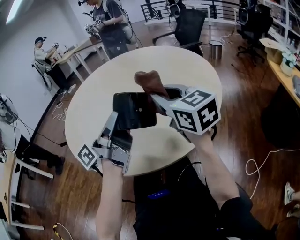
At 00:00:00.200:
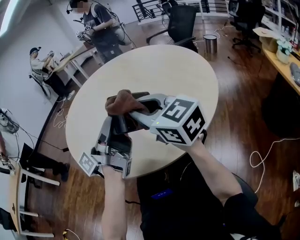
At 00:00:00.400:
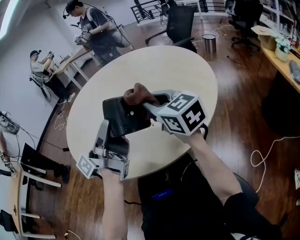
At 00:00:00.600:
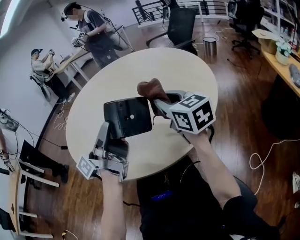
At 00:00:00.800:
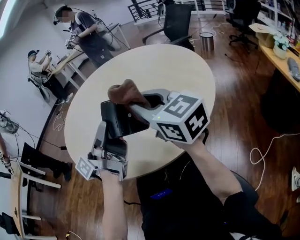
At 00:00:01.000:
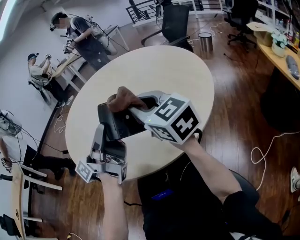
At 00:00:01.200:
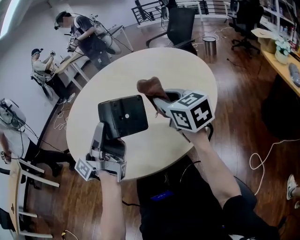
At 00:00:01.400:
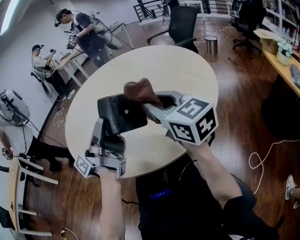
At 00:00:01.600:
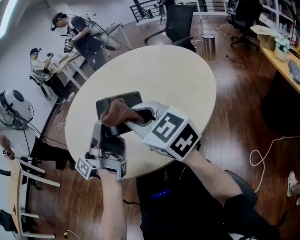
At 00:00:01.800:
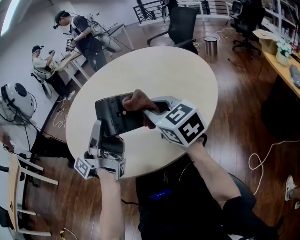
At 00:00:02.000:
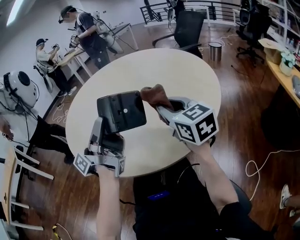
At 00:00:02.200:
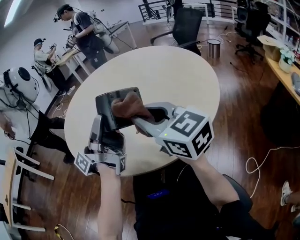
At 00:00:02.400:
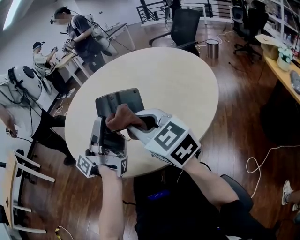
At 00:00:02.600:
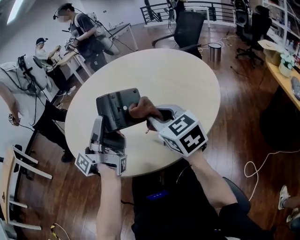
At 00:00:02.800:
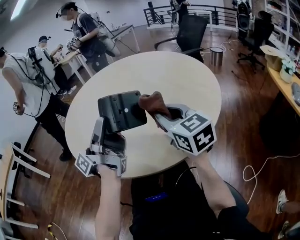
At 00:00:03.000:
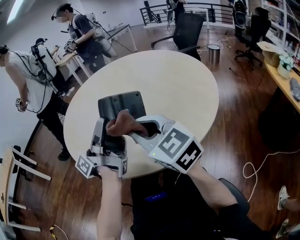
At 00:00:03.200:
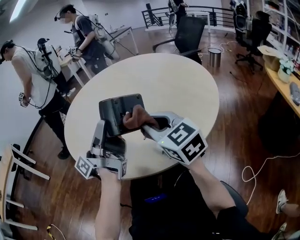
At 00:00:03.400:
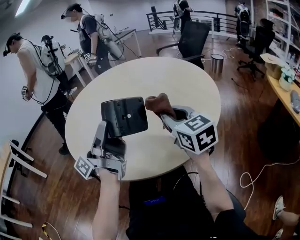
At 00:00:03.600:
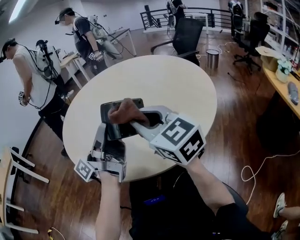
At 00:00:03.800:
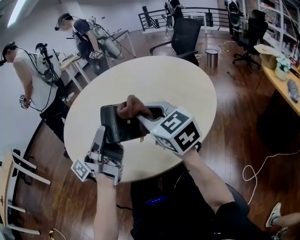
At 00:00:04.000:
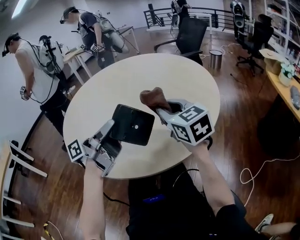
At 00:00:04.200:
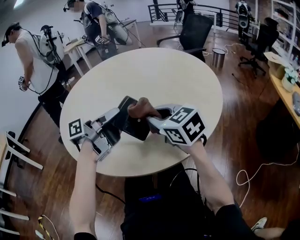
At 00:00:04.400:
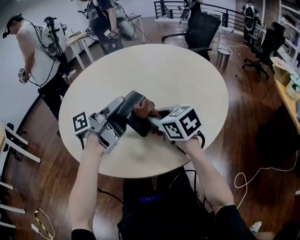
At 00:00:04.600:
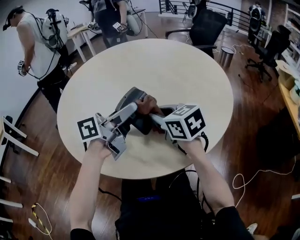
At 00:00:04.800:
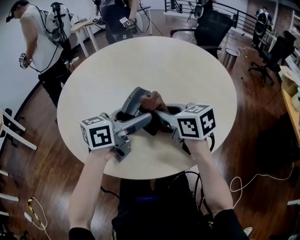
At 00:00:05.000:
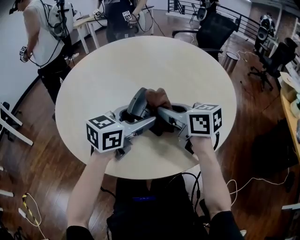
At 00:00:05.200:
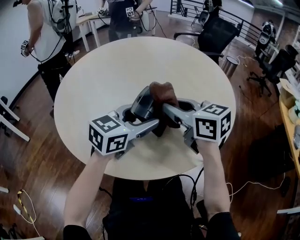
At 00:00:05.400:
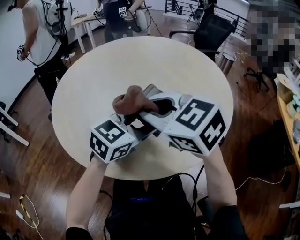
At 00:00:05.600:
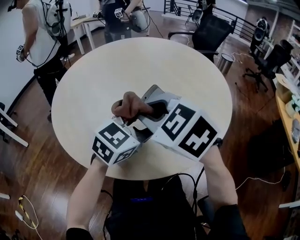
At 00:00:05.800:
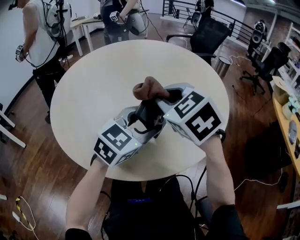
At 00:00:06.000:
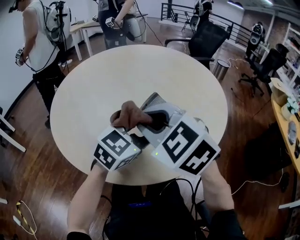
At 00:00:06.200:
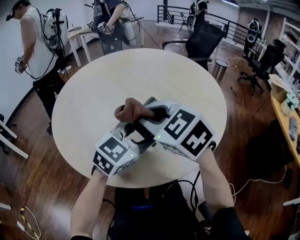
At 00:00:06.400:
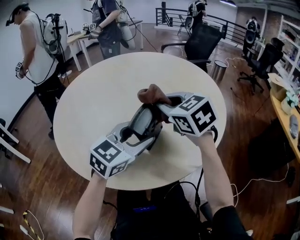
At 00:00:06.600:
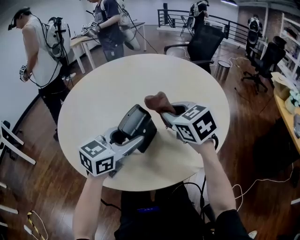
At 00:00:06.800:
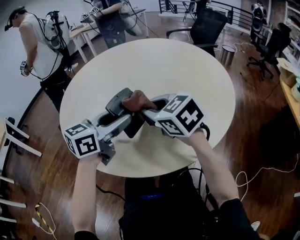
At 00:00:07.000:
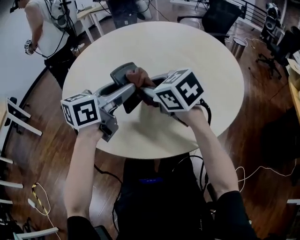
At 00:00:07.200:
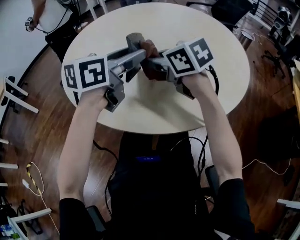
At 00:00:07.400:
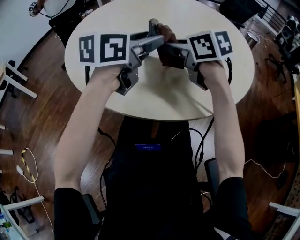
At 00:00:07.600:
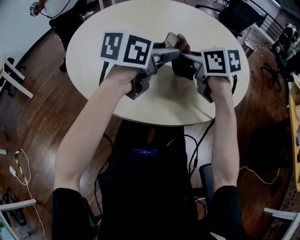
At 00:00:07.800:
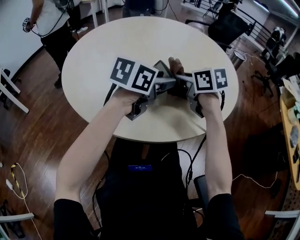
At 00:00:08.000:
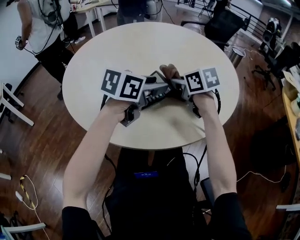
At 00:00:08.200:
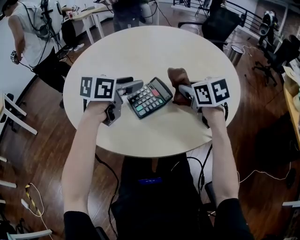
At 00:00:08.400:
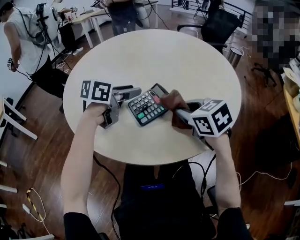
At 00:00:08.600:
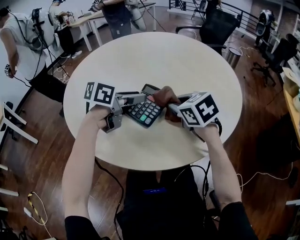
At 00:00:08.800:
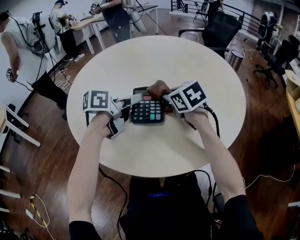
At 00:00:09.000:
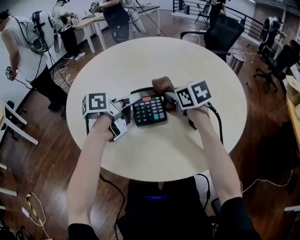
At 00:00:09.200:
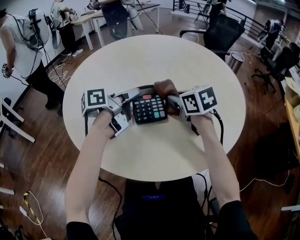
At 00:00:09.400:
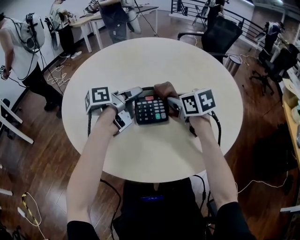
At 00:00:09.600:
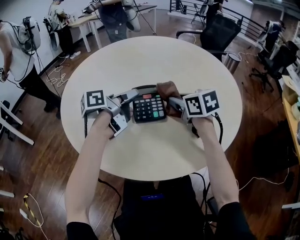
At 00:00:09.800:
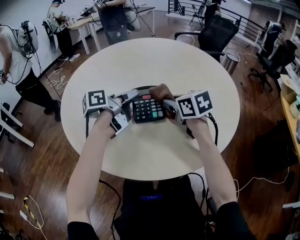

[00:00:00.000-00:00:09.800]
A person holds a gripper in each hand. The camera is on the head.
00:00:00.000 to 00:00:01.400: The right gripper goes left and right, roughly 10 cm each way, reversing 3 times.
00:00:01.400 to 00:00:02.800: The right gripper swings left and right, some 10 cm each way, with 3 reversals.
00:00:02.800 to 00:00:04.200: The left gripper is displaced downward and forward by about 10 cm, and angles its fingers downward, by approximately 30 degrees, while the right gripper swings left and right, roughly 10 cm each way, with 4 reversals.
00:00:04.200 to 00:00:05.600: The left gripper shifts some 5 cm to the right, rolls clockwise, seen from behind, by roughly 80 degrees, and opens its fingers. The right gripper shifts roughly 10 cm to the left, and changes its angle by roughly 30 degrees.
00:00:05.600 to 00:00:07.000: The right gripper swings left and right, about 10 cm each way, with 3 reversals, and swivels approximately 20 degrees. The left gripper travels to the left by some 10 cm, and rotates about 30 degrees.
00:00:07.000 to 00:00:08.400: The left gripper goes some 10 cm downward and forward, and changes its angle by about 20 degrees. Meanwhile the right gripper heads to the right, covering approximately 10 cm.
00:00:08.400 to 00:00:09.800: The right gripper travels forward by roughly 10 cm; the left gripper rotates roughly 40 degrees.

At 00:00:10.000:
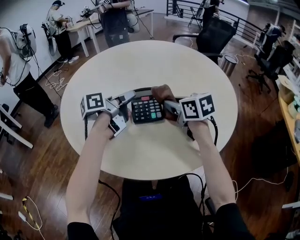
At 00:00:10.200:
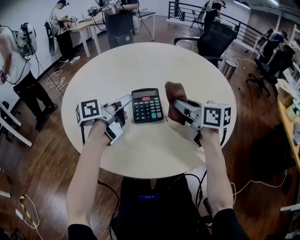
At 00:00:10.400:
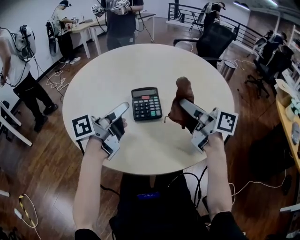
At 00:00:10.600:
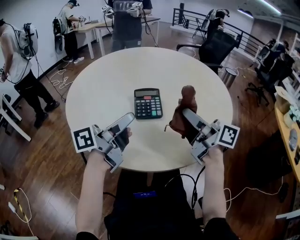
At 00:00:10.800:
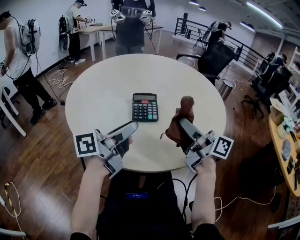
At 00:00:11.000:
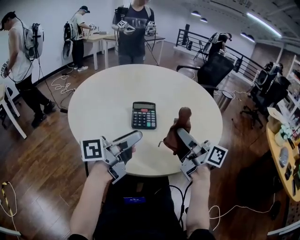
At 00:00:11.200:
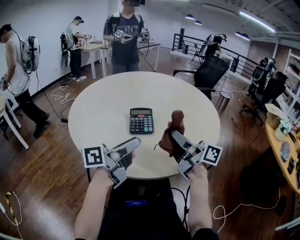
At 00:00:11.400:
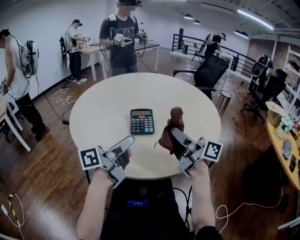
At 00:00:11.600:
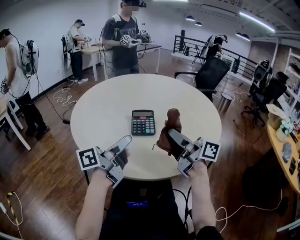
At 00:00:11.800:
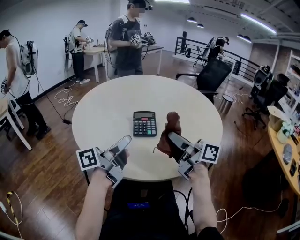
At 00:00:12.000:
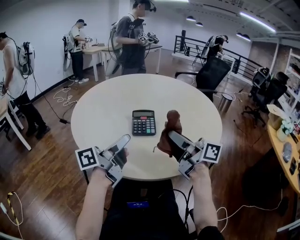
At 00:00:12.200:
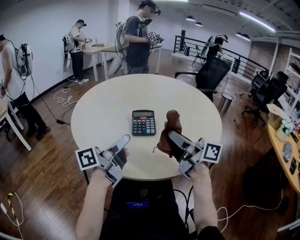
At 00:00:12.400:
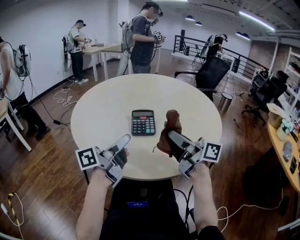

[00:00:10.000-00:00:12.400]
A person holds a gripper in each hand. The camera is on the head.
00:00:10.000 to 00:00:11.200: The left gripper moves backward, roughly 20 cm, and rotates roughly 20 degrees. Meanwhile the right gripper travels backward and upward by some 20 cm, and tips its fingers upward by about 50 degrees.
00:00:11.200 to 00:00:12.400: The grippers move only a little.

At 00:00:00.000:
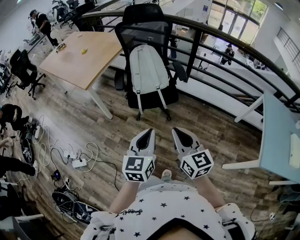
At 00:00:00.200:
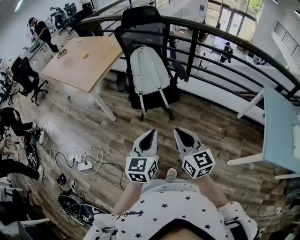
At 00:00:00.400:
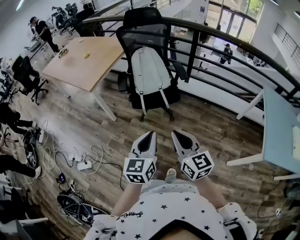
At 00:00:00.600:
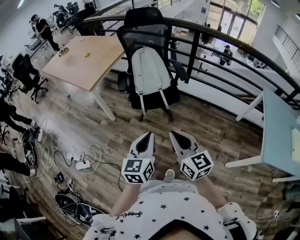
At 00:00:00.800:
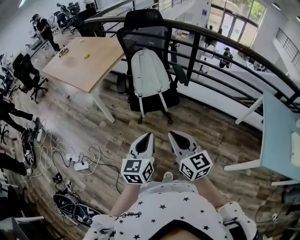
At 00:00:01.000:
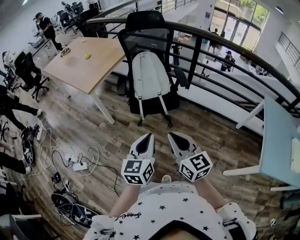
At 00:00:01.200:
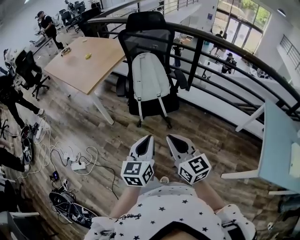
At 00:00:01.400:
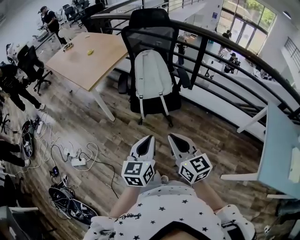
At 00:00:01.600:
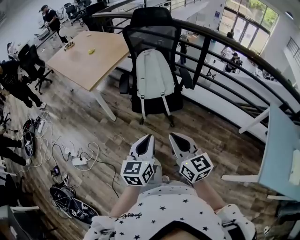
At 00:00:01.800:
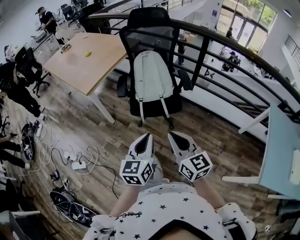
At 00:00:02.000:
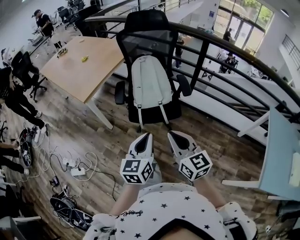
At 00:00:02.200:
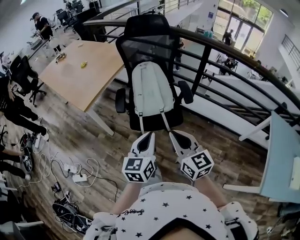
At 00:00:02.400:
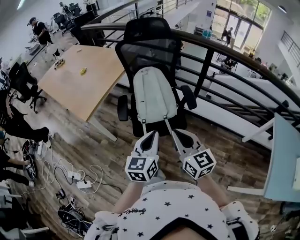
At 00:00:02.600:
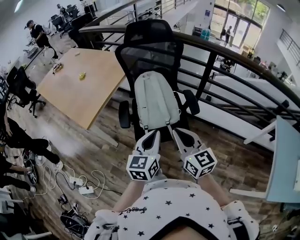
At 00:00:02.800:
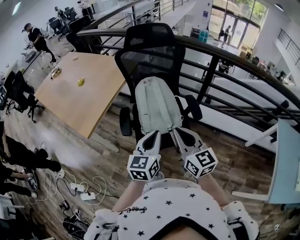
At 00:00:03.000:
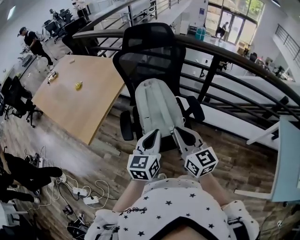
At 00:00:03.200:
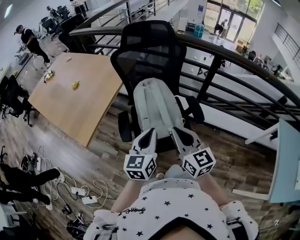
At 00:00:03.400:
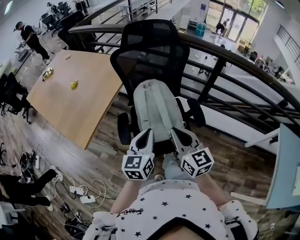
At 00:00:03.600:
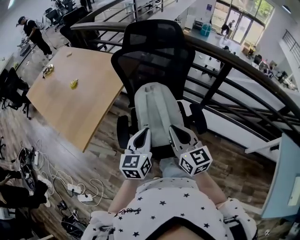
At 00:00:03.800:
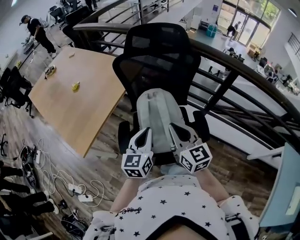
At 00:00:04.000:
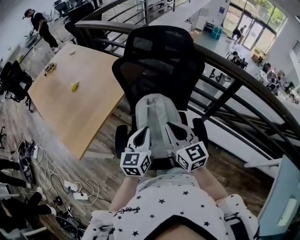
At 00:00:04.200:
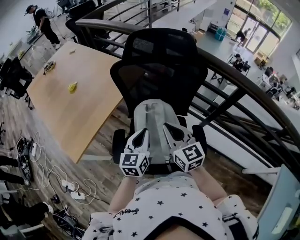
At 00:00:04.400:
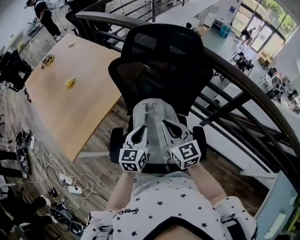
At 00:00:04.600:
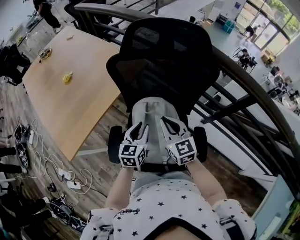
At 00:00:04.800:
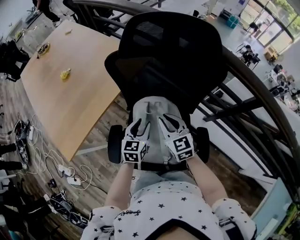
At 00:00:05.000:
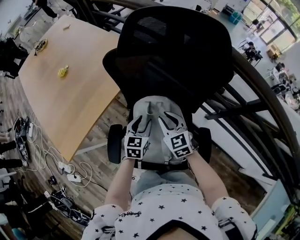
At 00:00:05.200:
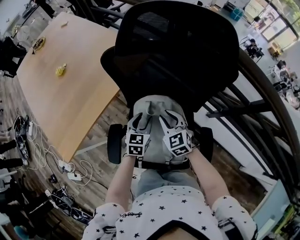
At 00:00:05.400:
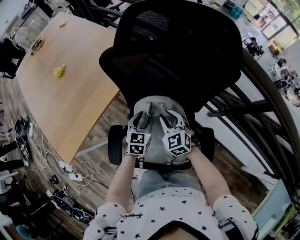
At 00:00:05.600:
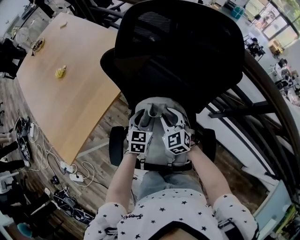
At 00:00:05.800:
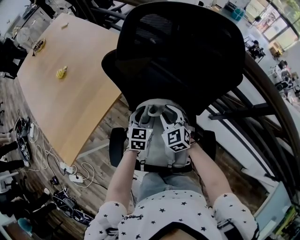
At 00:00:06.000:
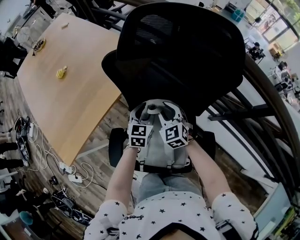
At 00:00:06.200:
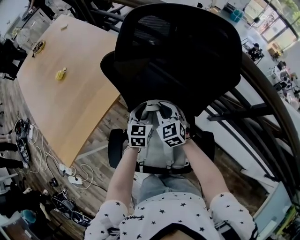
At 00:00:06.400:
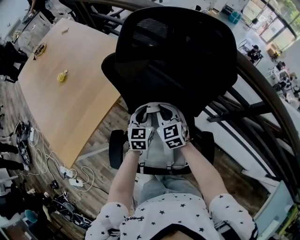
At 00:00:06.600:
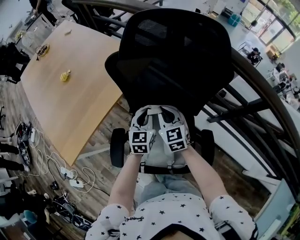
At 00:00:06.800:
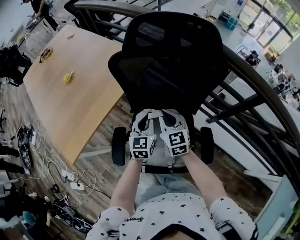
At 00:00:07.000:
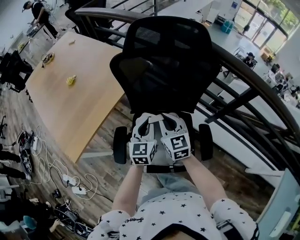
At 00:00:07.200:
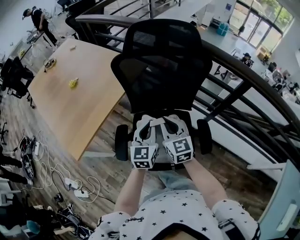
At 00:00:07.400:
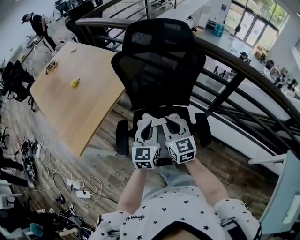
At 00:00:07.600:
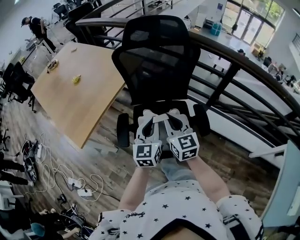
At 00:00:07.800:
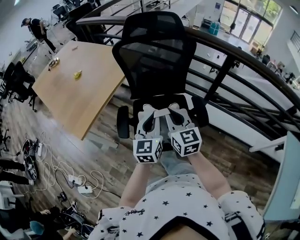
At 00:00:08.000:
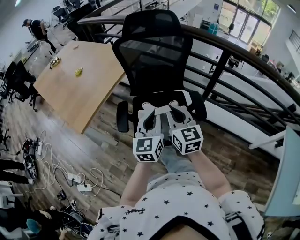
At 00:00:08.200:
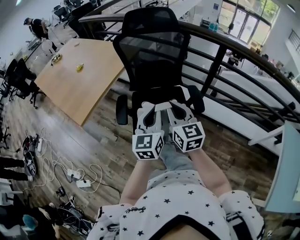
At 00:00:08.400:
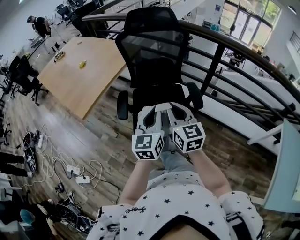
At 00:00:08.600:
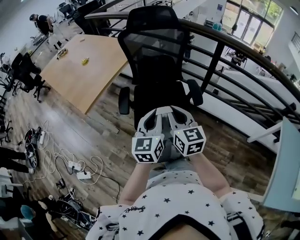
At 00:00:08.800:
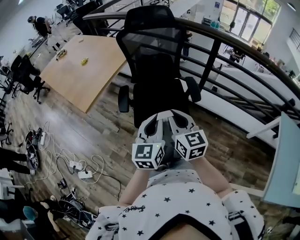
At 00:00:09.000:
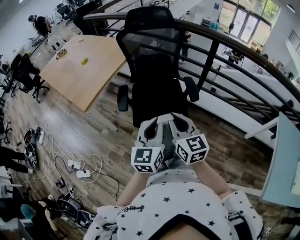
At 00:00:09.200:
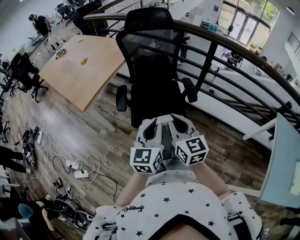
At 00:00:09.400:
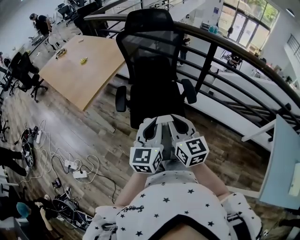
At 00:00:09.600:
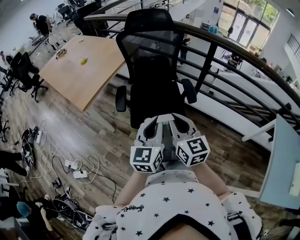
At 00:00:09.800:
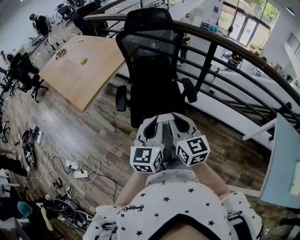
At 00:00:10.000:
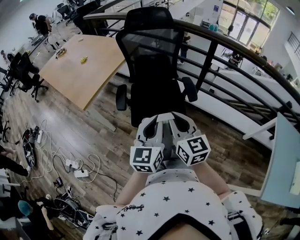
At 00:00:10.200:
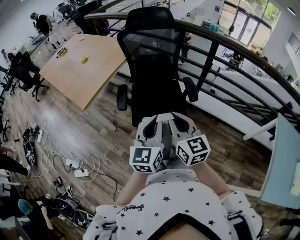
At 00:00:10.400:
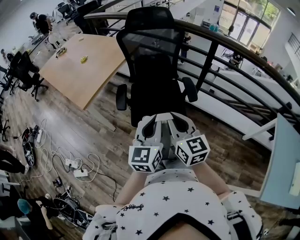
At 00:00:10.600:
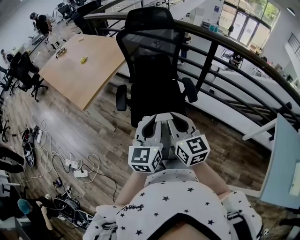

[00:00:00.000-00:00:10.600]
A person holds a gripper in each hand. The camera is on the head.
00:00:00.000 to 00:00:01.600: The grippers make only small movements.
00:00:01.600 to 00:00:03.000: The two grippers go some 35 cm forward.
00:00:03.000 to 00:00:04.600: The right gripper moves forward, roughly 35 cm, and rotates approximately 20 degrees. The left gripper is displaced forward and downward by about 35 cm, and opens up.
00:00:04.600 to 00:00:06.000: The right gripper shifts some 20 cm downward and forward, rotates some 20 degrees, and opens, while the left gripper heads forward and downward, covering about 15 cm.
00:00:06.000 to 00:00:07.600: Both grippers move backward and upward, about 35 cm. The left gripper rotates about 20 degrees, and closes up. The right gripper swivels some 30 degrees, and closes its fingers.
00:00:07.600 to 00:00:09.000: Both grippers travel together backward, approximately 30 cm.
00:00:09.000 to 00:00:10.600: The grippers move only a little.
